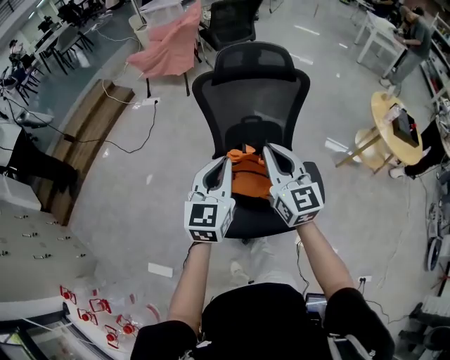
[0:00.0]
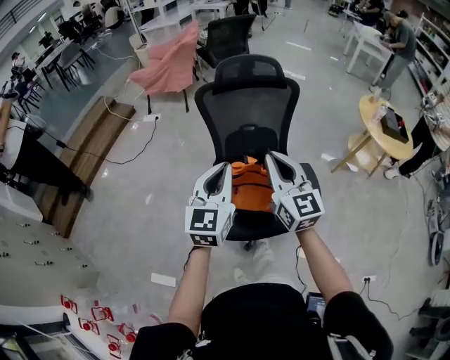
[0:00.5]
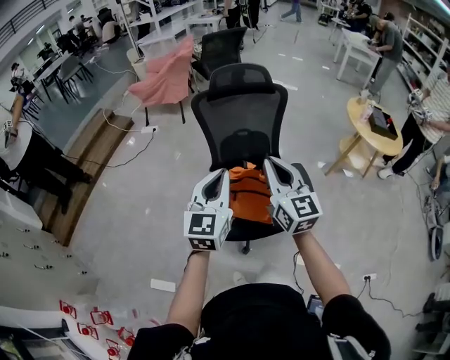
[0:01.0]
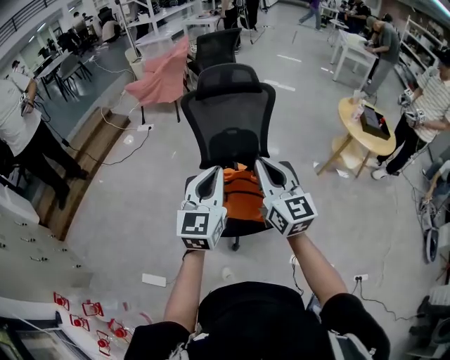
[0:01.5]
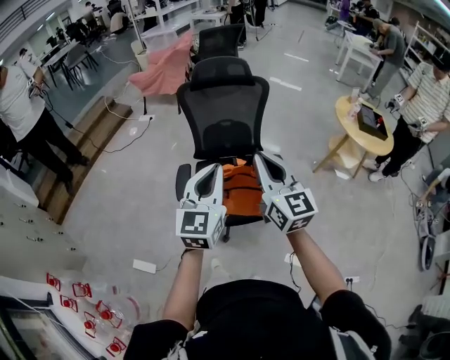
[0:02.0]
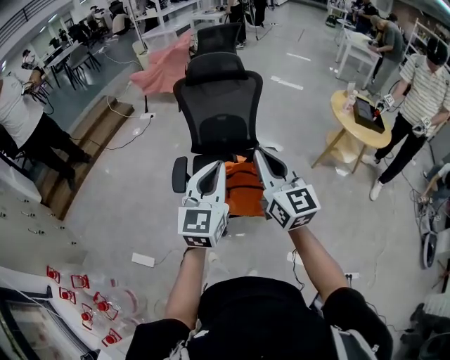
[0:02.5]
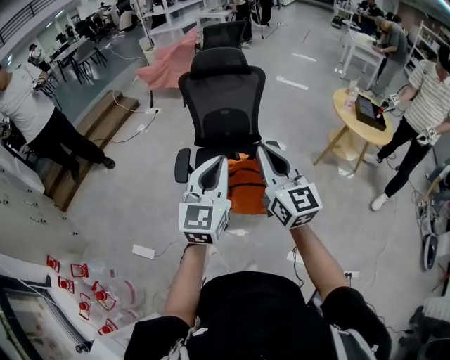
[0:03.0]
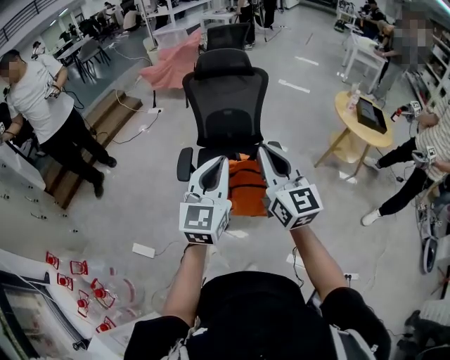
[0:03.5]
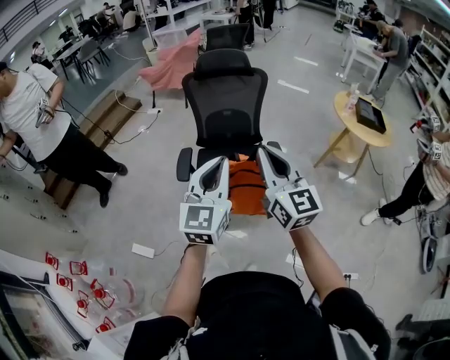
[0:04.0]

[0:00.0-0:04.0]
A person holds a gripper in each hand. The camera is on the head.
0:00.0 to 0:02.0: Both grippers move backward, to the right and upward, roughly 30 cm.
0:02.0 to 0:04.0: The two grippers go roughly 10 cm backward.

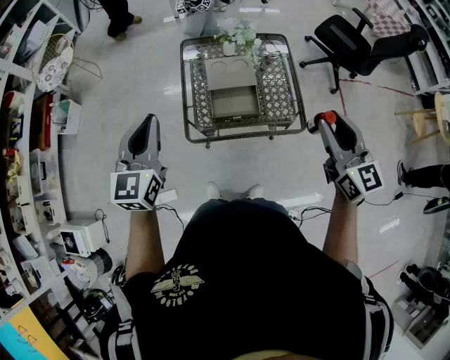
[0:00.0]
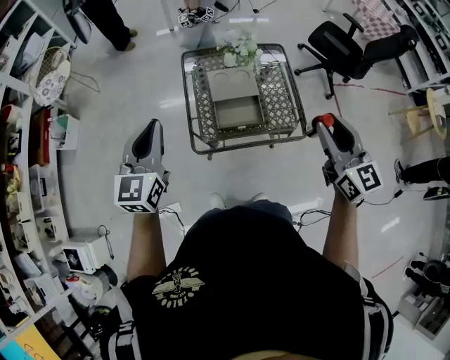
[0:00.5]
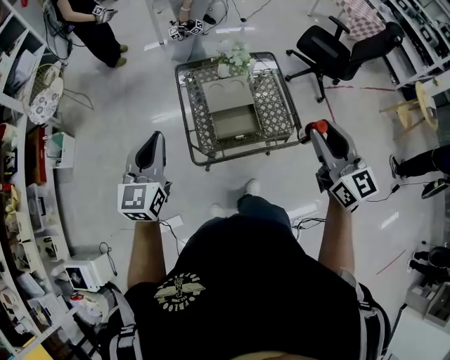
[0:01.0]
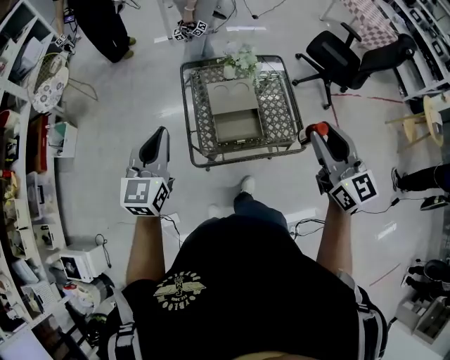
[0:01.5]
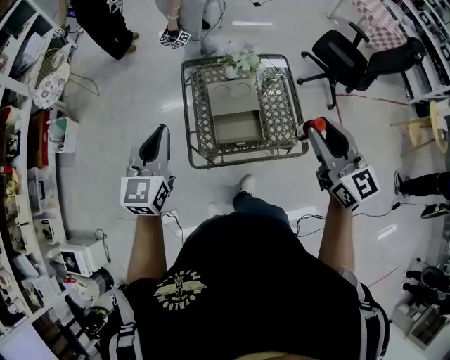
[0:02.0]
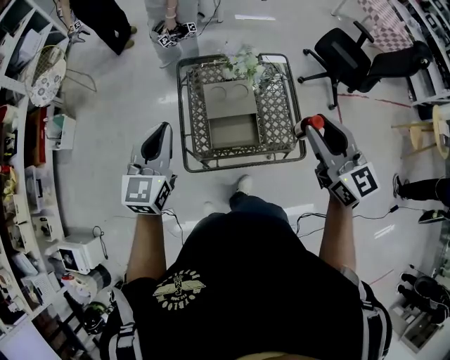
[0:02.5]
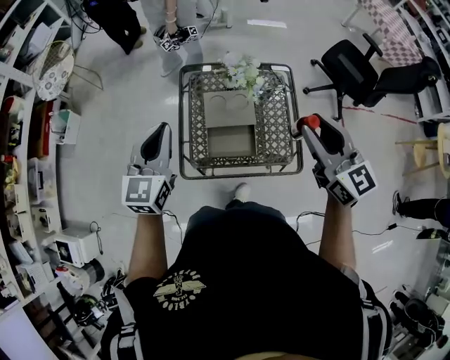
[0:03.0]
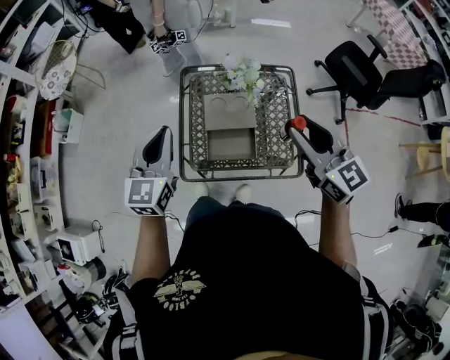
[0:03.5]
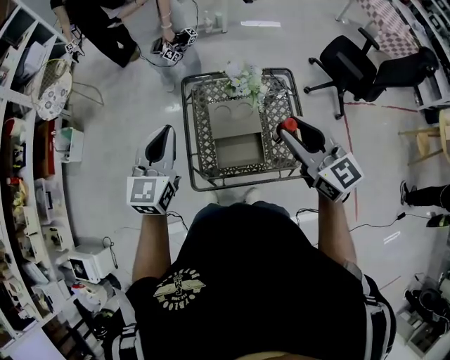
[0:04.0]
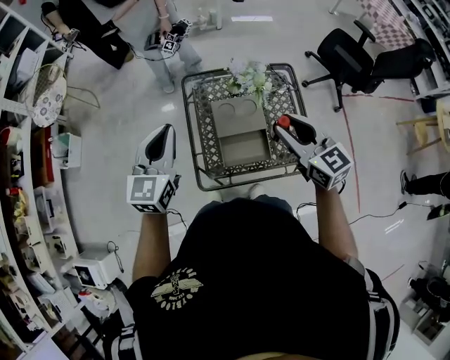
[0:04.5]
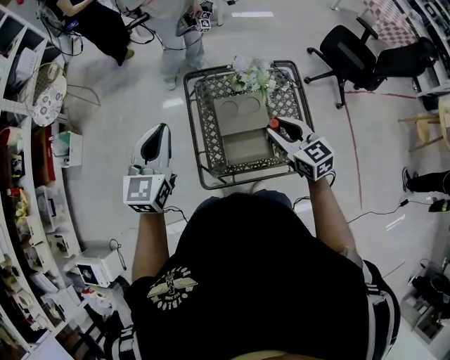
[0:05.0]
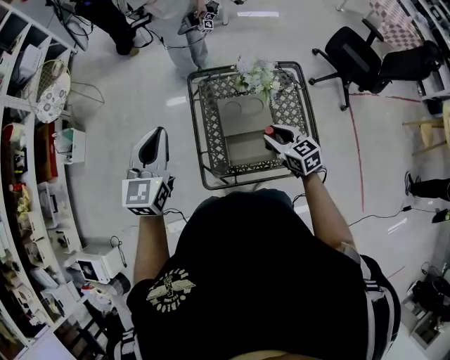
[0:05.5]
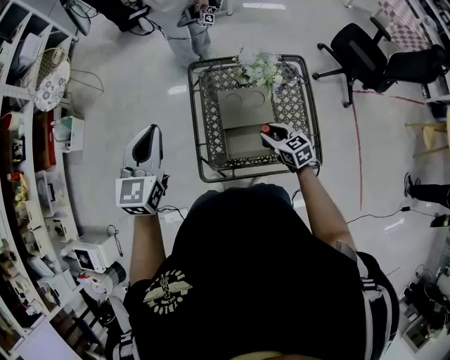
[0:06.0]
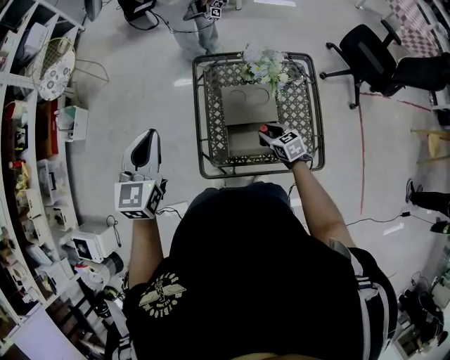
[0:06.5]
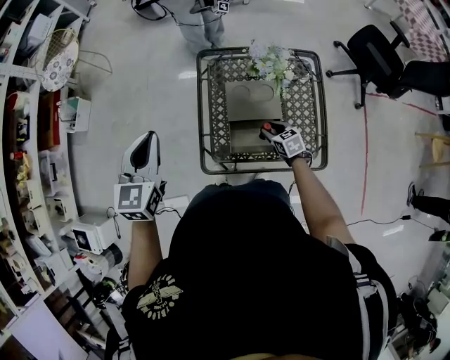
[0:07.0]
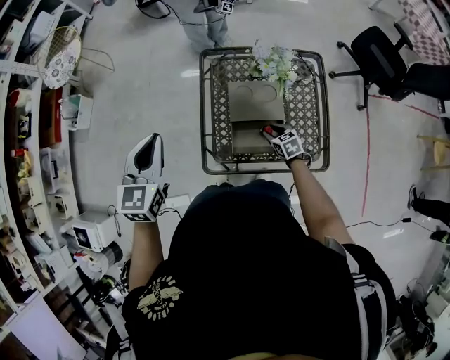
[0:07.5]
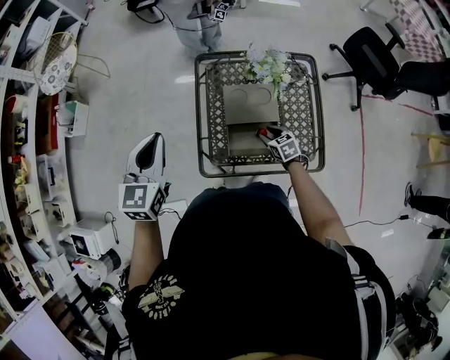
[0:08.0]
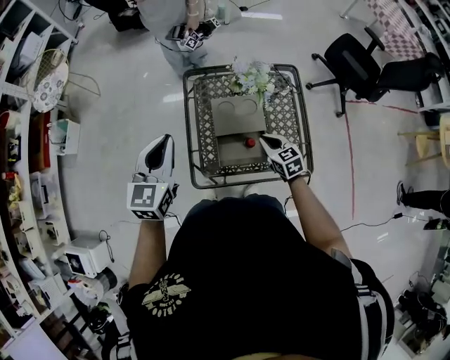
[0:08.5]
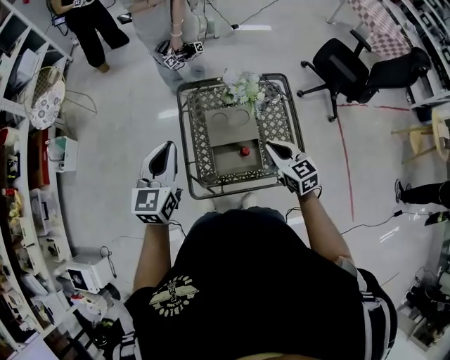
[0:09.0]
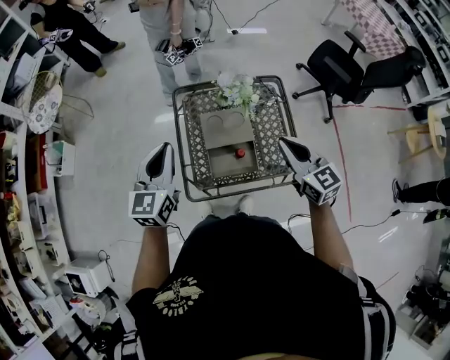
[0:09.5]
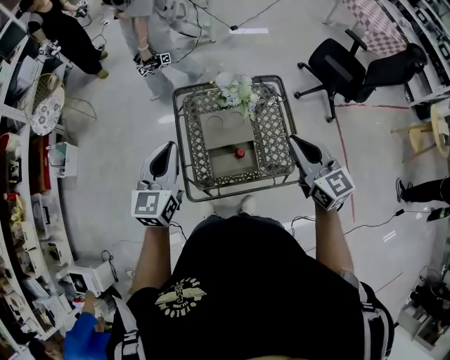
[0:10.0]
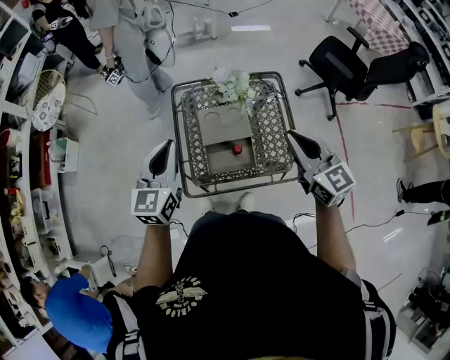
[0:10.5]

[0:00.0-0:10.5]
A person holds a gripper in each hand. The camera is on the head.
0:00.0 to 0:02.0: The right gripper is displaced forward and to the left by some 10 cm, while the left gripper goes about 10 cm forward.
0:02.0 to 0:04.0: The right gripper is displaced forward by about 15 cm. The left gripper travels forward and to the right by some 15 cm.
0:04.0 to 0:06.5: The left gripper goes roughly 5 cm to the left; the right gripper shifts approximately 40 cm downward, and angles its fingers downward, by approximately 40 degrees.
0:06.5 to 0:08.5: The right gripper goes about 5 cm upward, and closes up.
0:08.5 to 0:10.5: The left gripper goes roughly 5 cm to the right; the right gripper is displaced upward by about 30 cm, and turns by roughly 30 degrees.

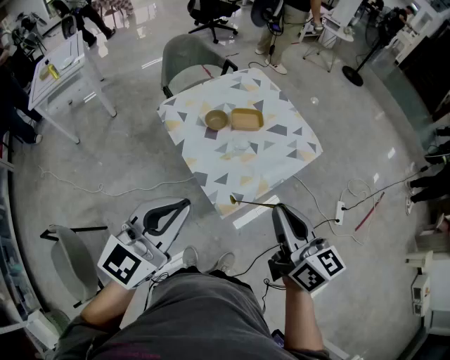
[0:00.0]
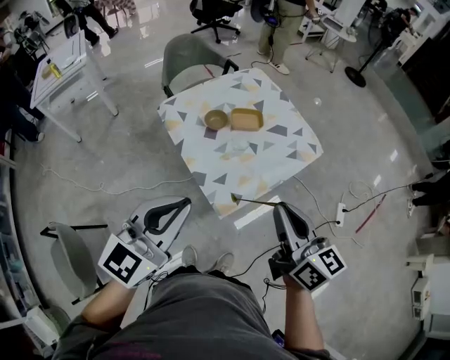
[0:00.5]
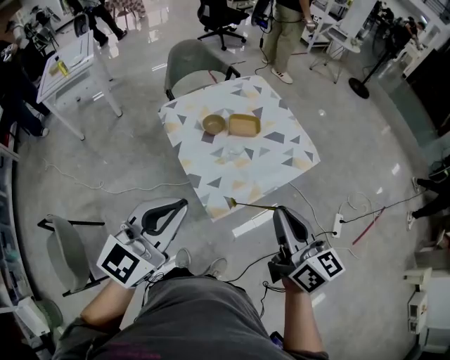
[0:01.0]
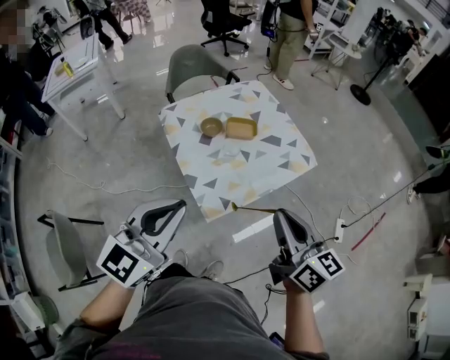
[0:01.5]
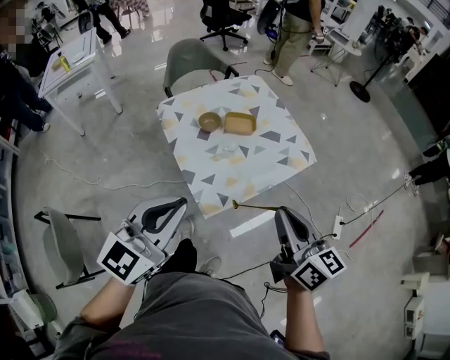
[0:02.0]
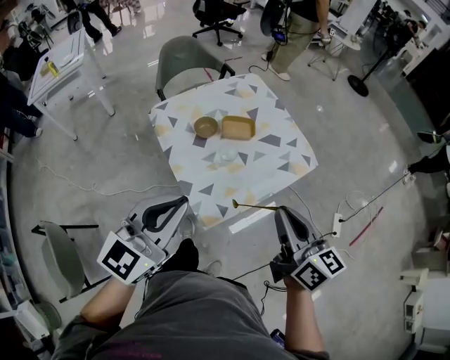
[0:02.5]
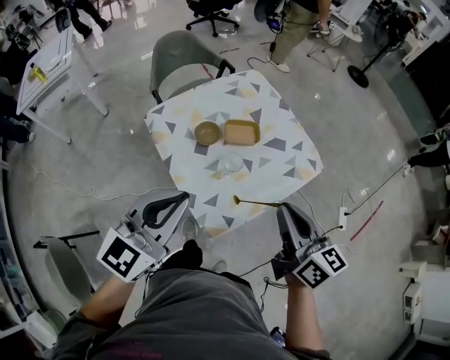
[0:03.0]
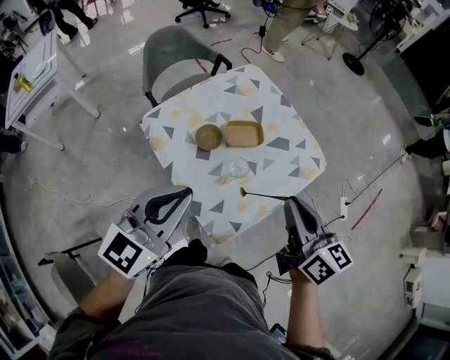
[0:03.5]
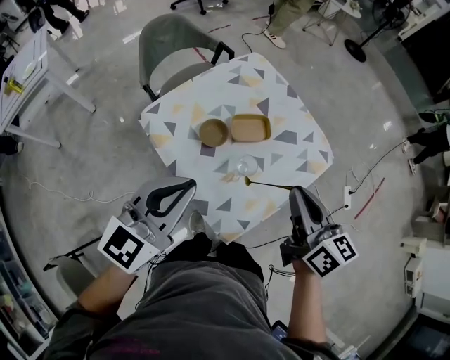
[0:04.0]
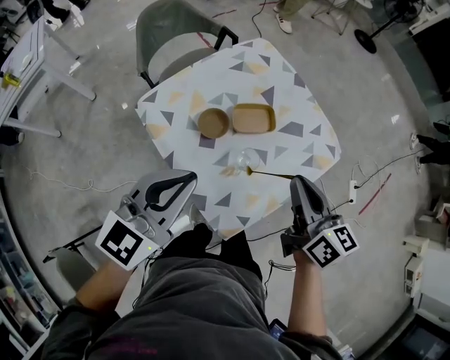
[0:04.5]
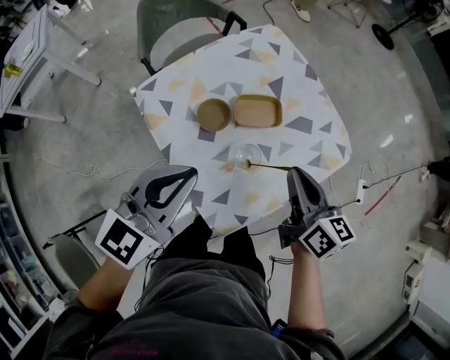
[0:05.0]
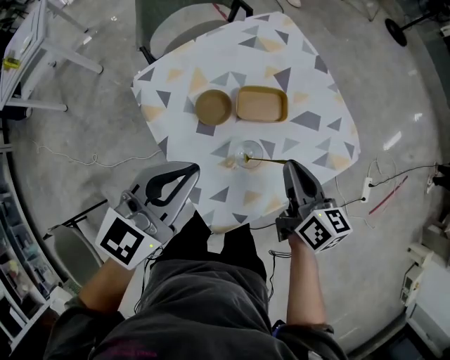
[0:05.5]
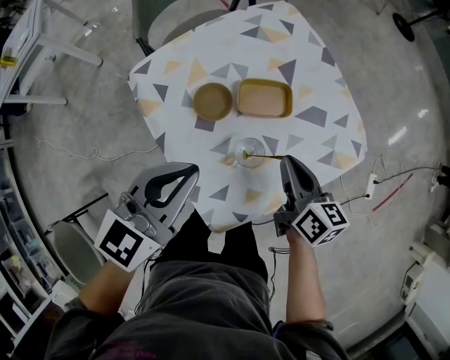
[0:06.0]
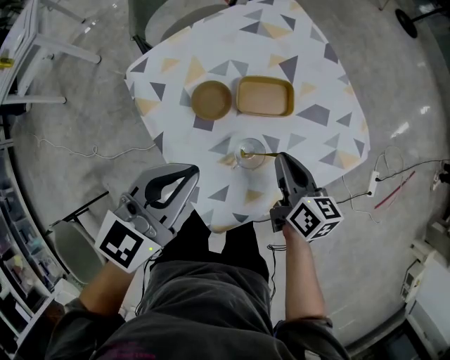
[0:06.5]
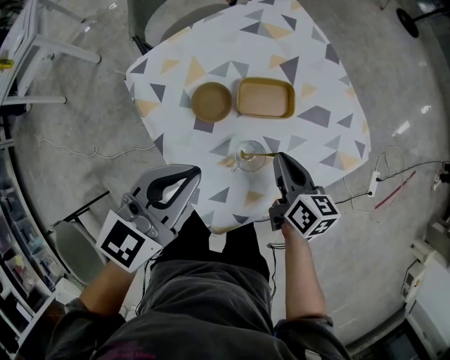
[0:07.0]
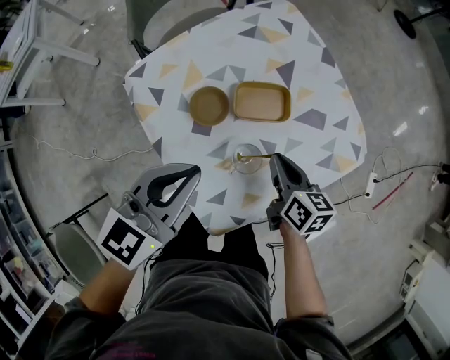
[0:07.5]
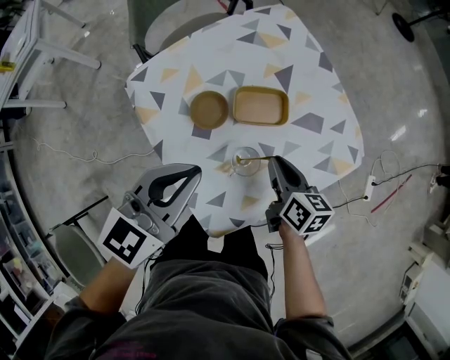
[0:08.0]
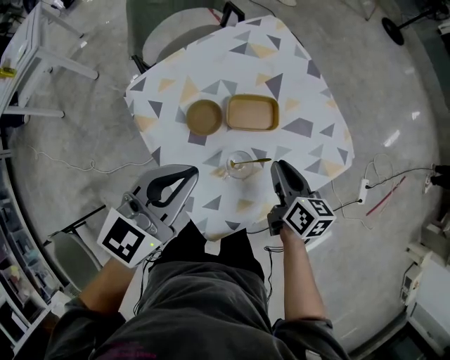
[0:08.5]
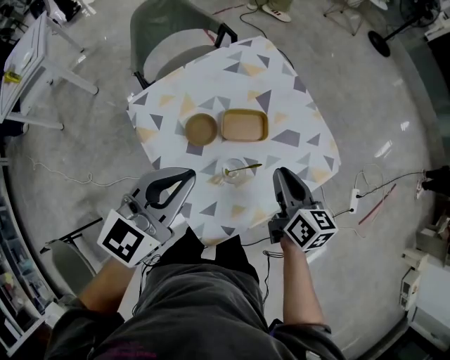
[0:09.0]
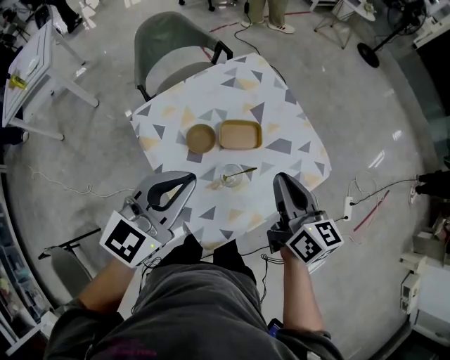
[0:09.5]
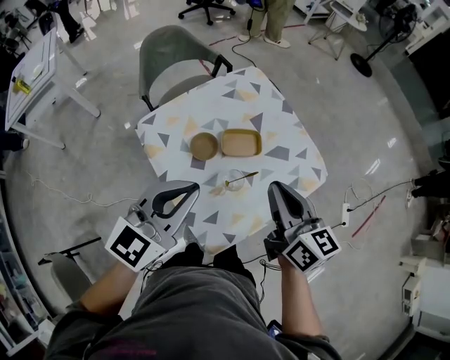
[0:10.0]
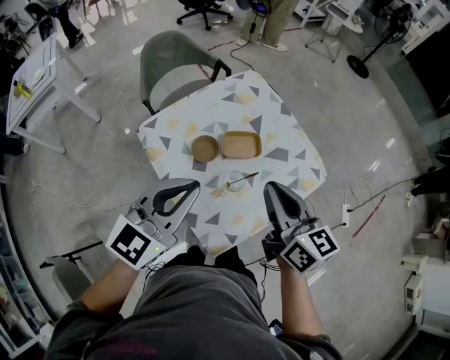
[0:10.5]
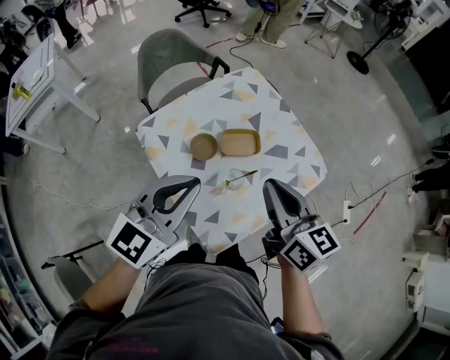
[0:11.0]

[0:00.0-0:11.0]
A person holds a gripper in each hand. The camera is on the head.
0:00.0 to 0:02.0: Both grippers travel together to the right, about 10 cm.
0:02.0 to 0:03.5: Both grippers move forward and to the left, approximately 25 cm.
0:03.5 to 0:05.5: The grippers both shift downward and forward by roughly 20 cm.
0:05.5 to 0:07.5: The right gripper goes about 10 cm downward; the left gripper changes place by some 5 cm.
0:07.5 to 0:09.0: The two grippers go about 10 cm upward.
0:09.0 to 0:11.0: The left gripper heads upward, covering some 10 cm. The right gripper heads upward and backward, covering approximately 20 cm.

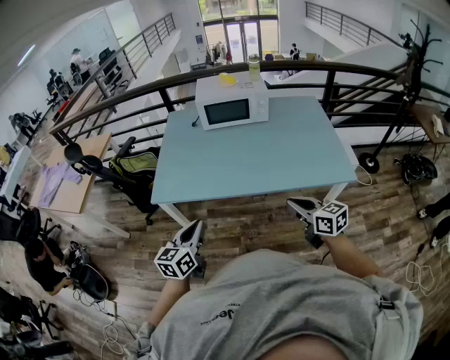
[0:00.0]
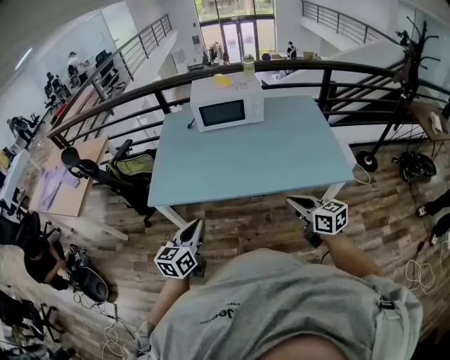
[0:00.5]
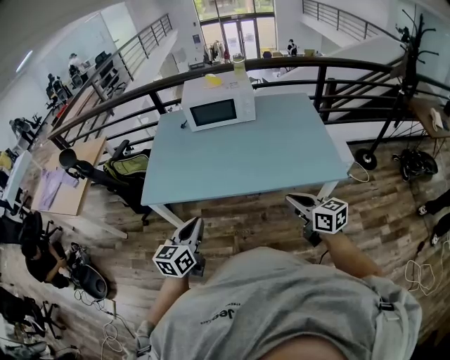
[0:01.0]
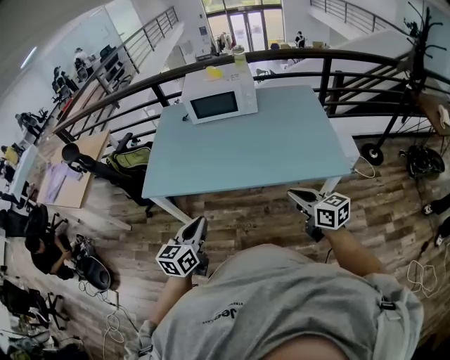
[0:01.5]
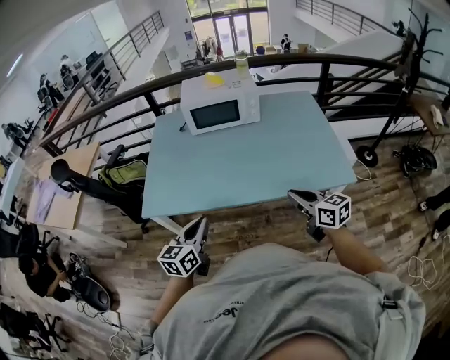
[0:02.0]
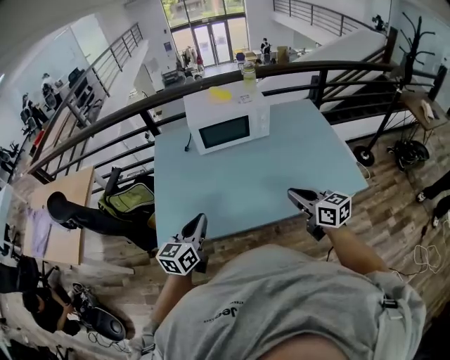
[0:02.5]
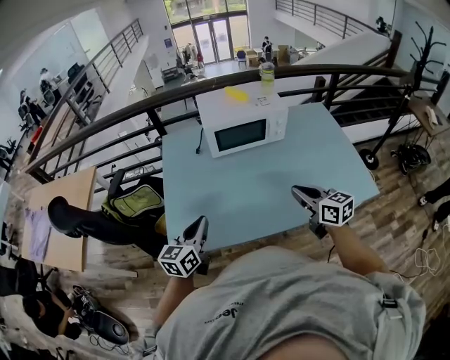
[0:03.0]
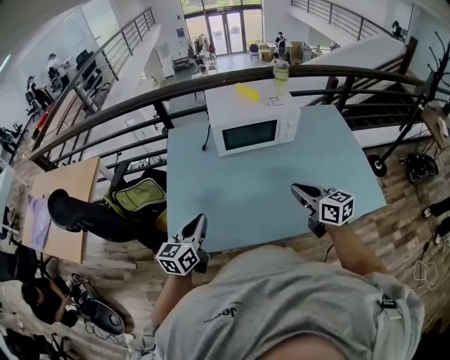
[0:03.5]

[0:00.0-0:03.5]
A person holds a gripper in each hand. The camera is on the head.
0:00.0 to 0:02.0: The right gripper travels forward by about 10 cm; the left gripper is displaced forward and to the right by about 10 cm.
0:02.0 to 0:03.5: Both grippers travel together forward and to the left, about 30 cm.
